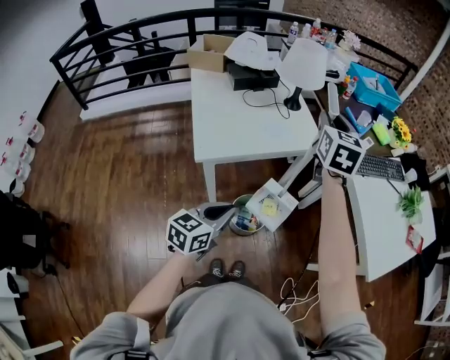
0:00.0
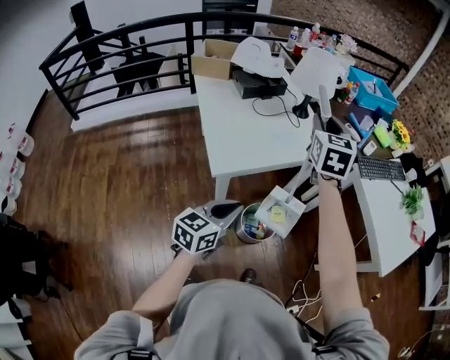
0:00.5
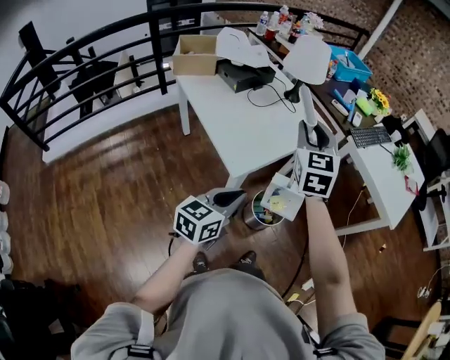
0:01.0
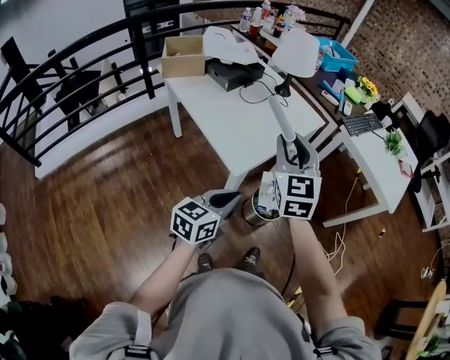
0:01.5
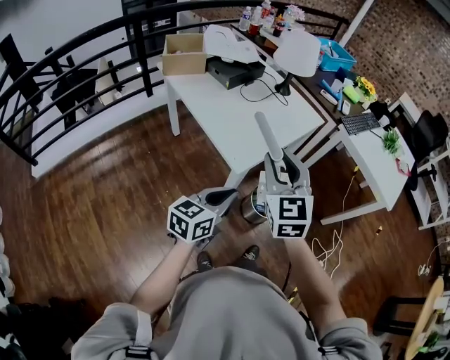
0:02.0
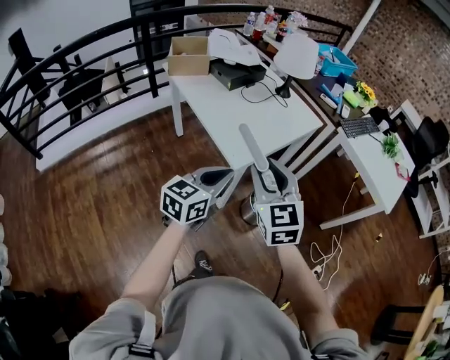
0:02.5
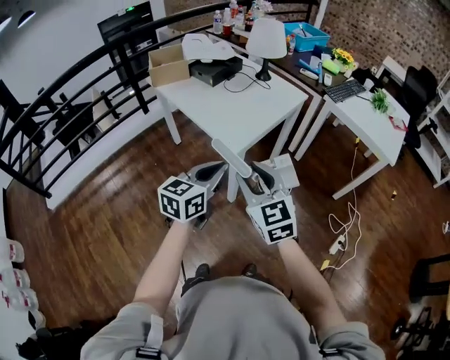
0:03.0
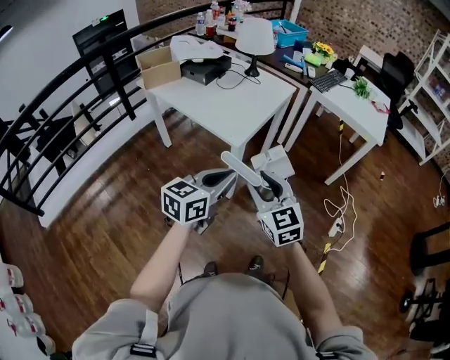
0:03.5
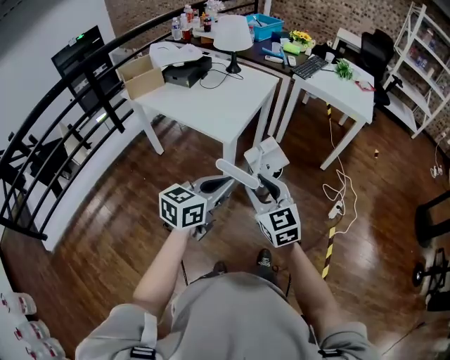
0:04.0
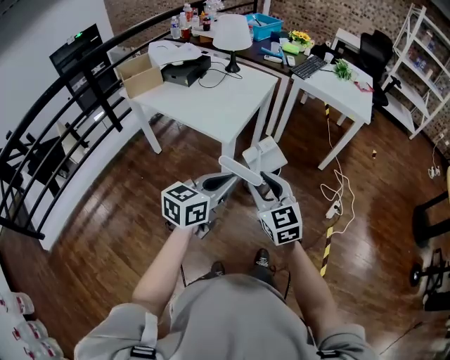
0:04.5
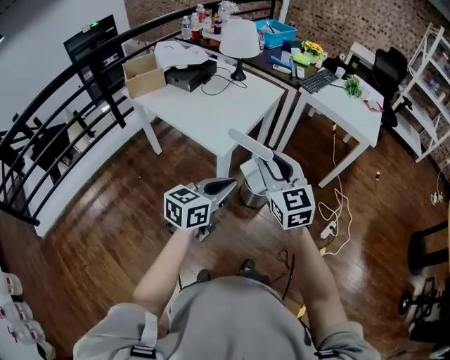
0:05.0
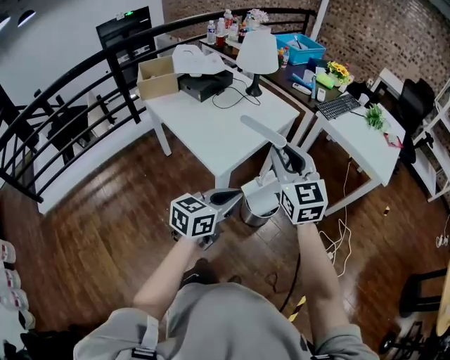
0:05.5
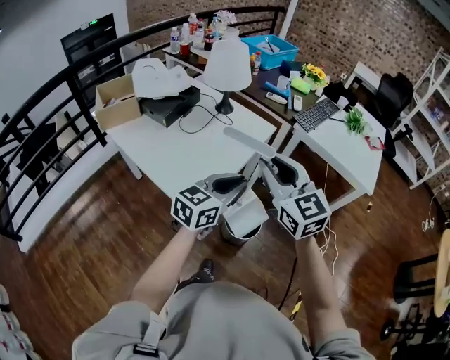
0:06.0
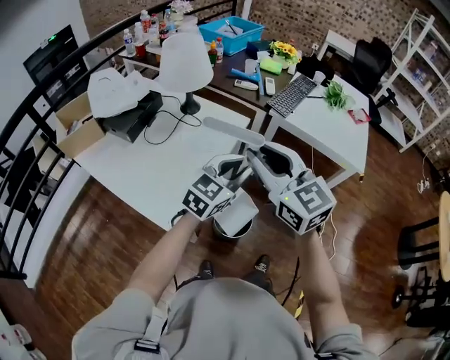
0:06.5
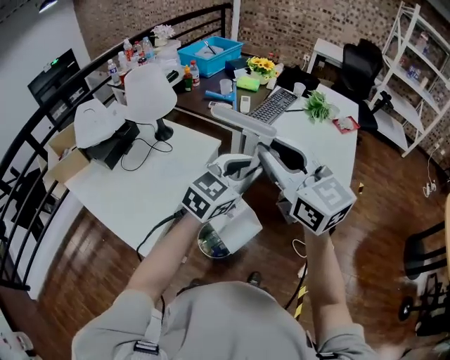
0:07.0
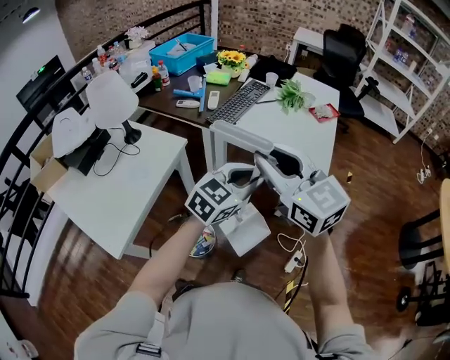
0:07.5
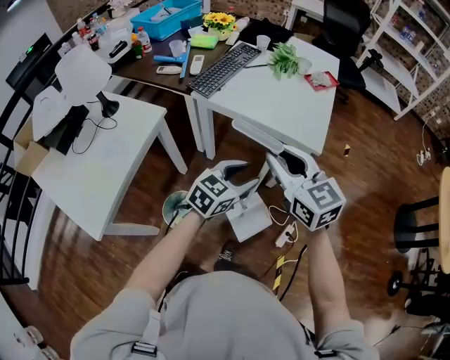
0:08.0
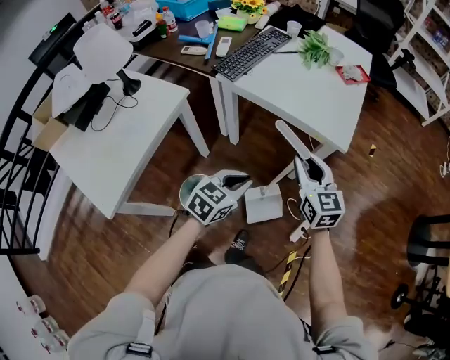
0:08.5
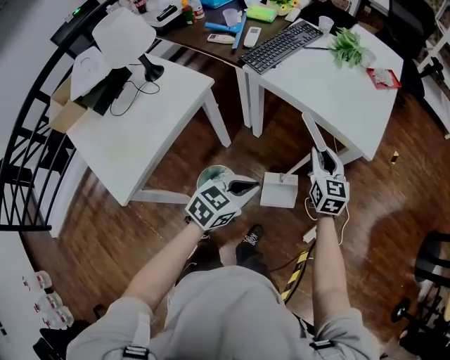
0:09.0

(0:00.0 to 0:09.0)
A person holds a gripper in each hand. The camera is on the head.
0:00.0 - 0:02.0: The left gripper heads to the left, covering about 25 cm, and rotates some 20 degrees; the right gripper heads backward and to the left, covering approximately 40 cm.
0:02.0 - 0:04.5: The left gripper moves backward, roughly 15 cm, and rotates approximately 20 degrees. The right gripper is displaced backward and downward by about 25 cm.
0:04.5 - 0:07.0: The pair of grippers is taken forward and to the right, about 60 cm. The right gripper heads upward, covering about 25 cm. Meanwhile the left gripper turns by roughly 30 degrees.
0:07.0 - 0:09.0: The right gripper heads downward, to the right and forward, covering roughly 50 cm, and changes its angle by roughly 30 degrees. Meanwhile the left gripper heads downward and to the right, covering approximately 25 cm, changes its angle by roughly 30 degrees, and opens, then closes once more.

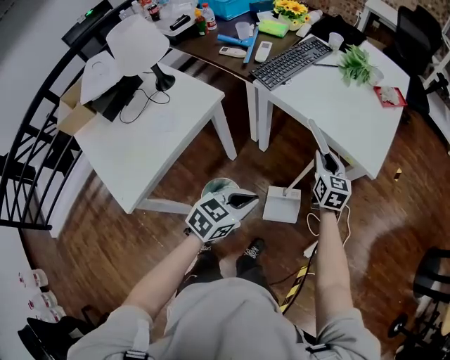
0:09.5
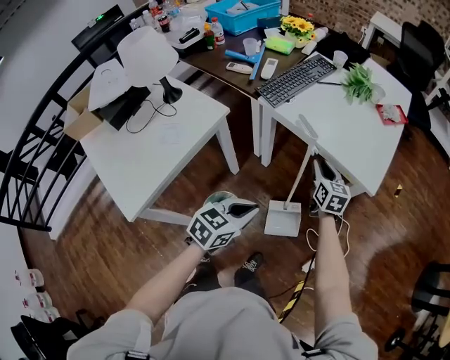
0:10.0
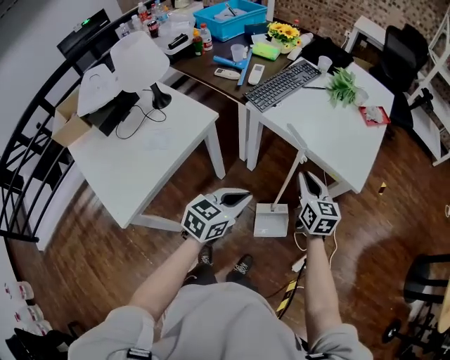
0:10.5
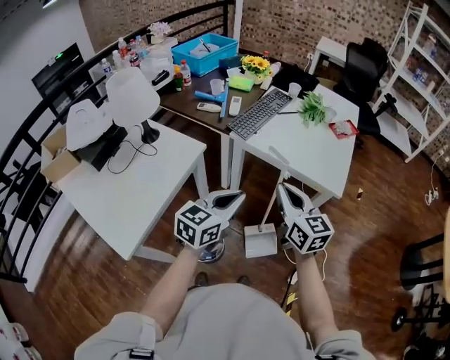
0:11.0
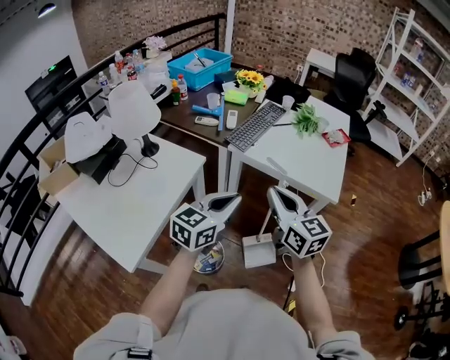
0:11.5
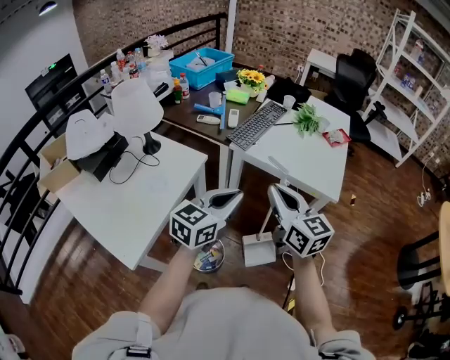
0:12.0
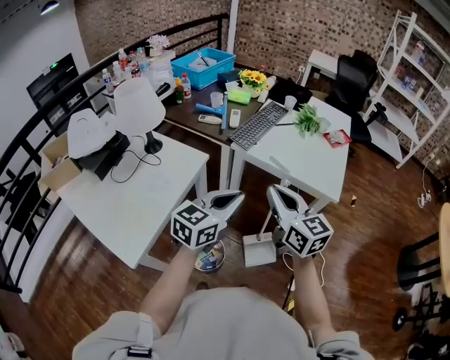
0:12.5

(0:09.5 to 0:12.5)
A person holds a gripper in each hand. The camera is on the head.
0:09.5 - 0:11.0: The left gripper shifts some 15 cm upward and to the left, and changes its angle by some 20 degrees, while the right gripper travels upward, backward and to the left by roughly 25 cm, and closes.
0:11.0 - 0:12.5: The left gripper ends up roughly 5 cm from where it was, while the right gripper shifts roughly 10 cm to the left and upward.

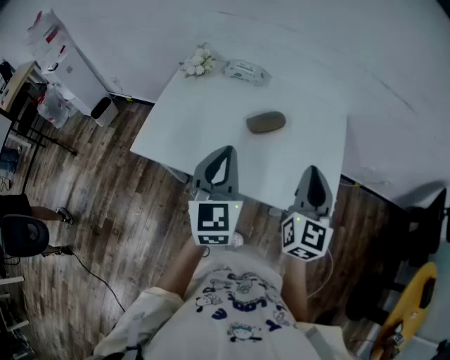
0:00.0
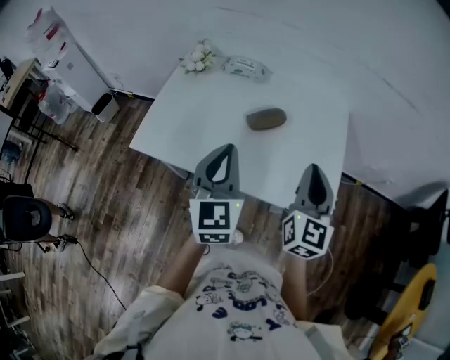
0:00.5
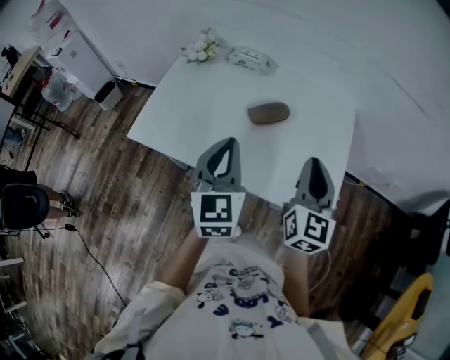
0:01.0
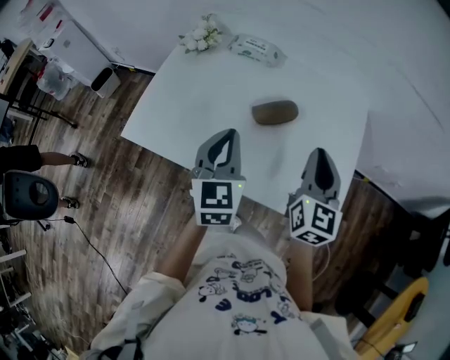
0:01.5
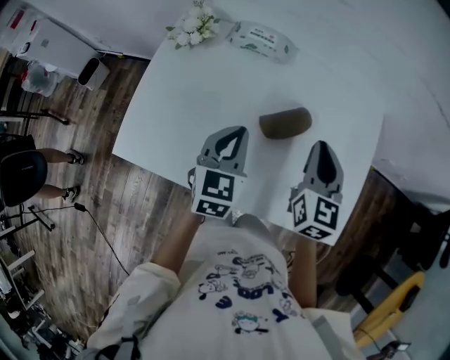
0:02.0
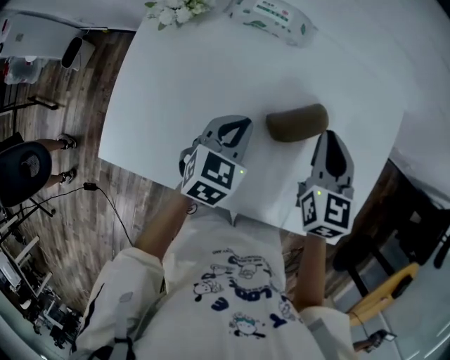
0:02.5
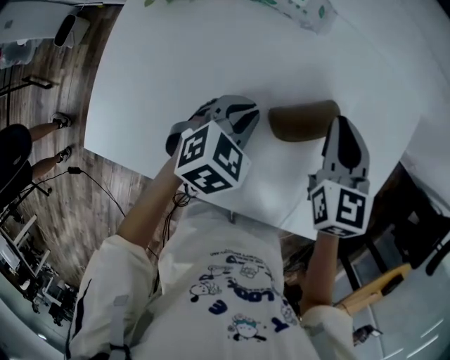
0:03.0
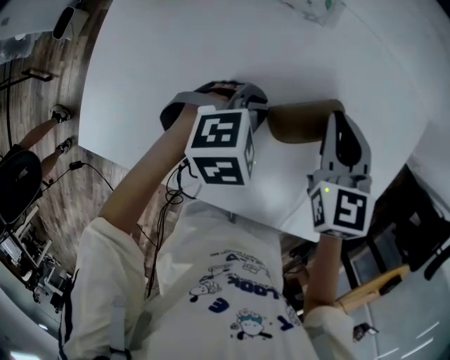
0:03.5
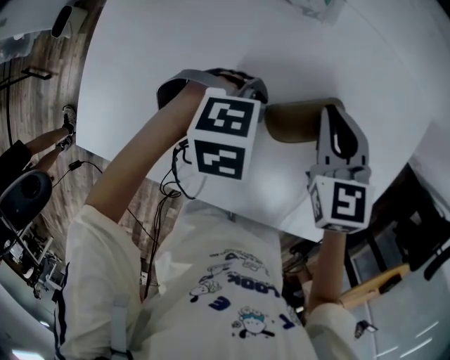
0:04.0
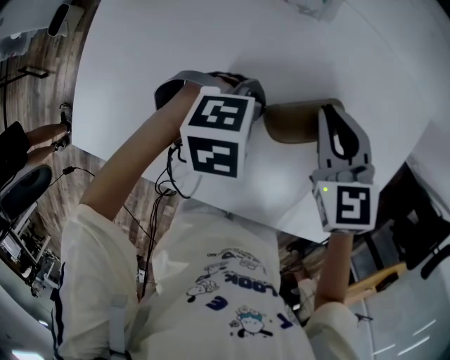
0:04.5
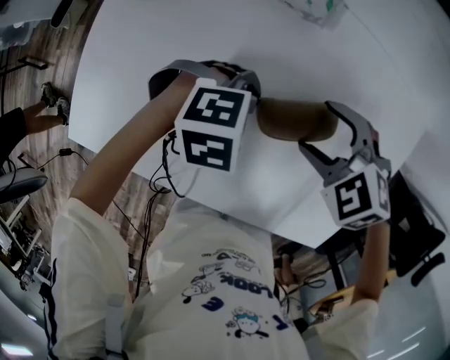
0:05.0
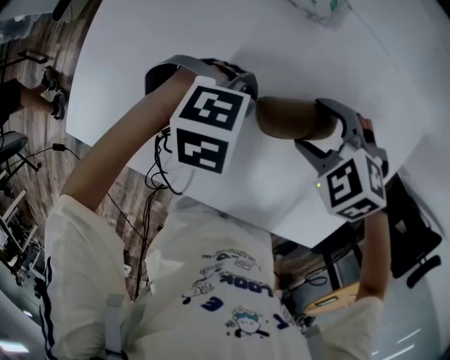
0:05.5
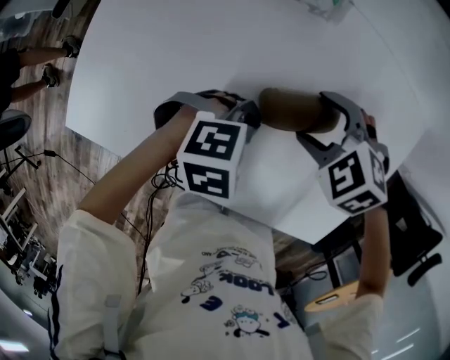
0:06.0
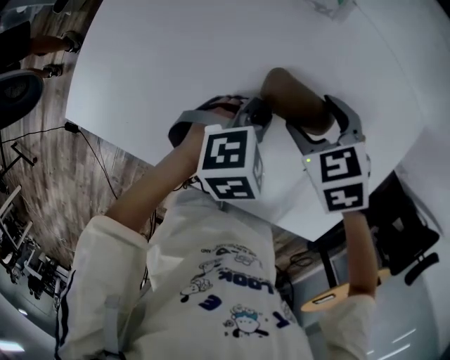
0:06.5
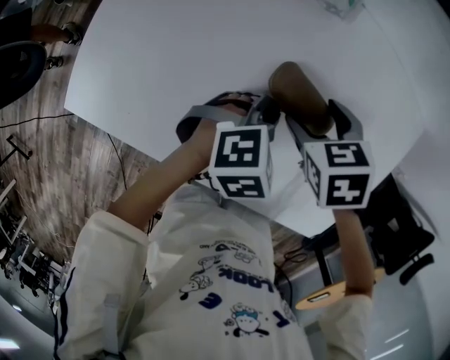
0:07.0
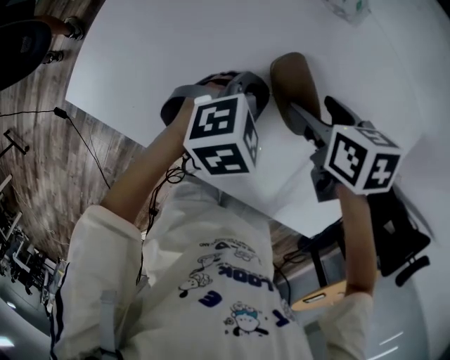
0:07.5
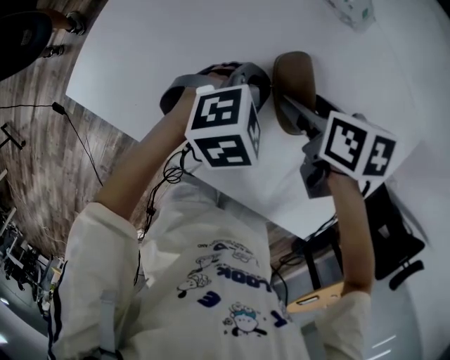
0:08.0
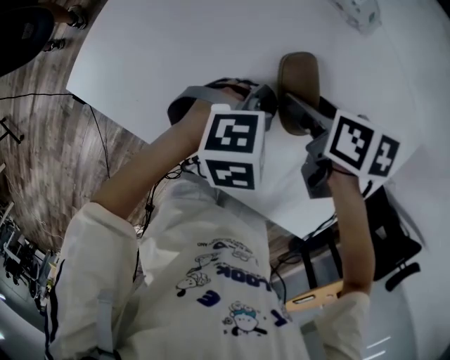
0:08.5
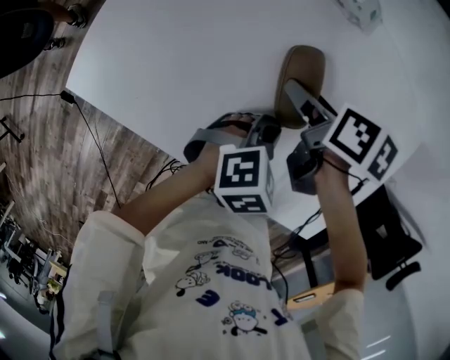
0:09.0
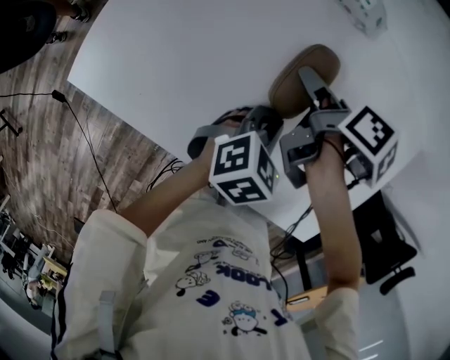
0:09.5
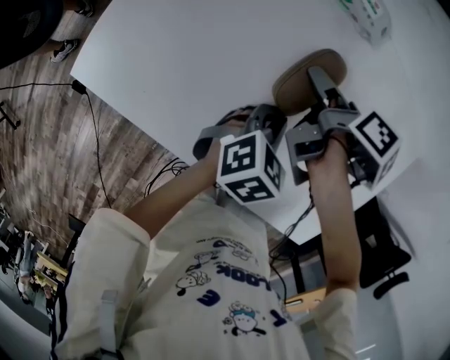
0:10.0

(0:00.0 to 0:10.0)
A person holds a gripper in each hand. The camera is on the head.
0:00.0 - 0:02.0: Both grippers travel together forward and downward, approximately 25 cm. The left gripper turns by approximately 20 degrees.
0:02.0 - 0:04.0: The left gripper heads downward and forward, covering approximately 15 cm, and tips its fingers downward by some 40 degrees. Meanwhile the right gripper travels downward, to the left and forward by about 15 cm, and rotates approximately 30 degrees.
0:04.0 - 0:06.0: The left gripper ends up about 5 cm from where it was. The right gripper goes about 5 cm downward, rotates approximately 60 degrees, and opens up.
0:06.0 - 0:08.0: The right gripper ends up some 5 cm from where it was, and rotates around the line of its fingers by roughly 60 degrees, clockwise from behind, while the left gripper changes place by about 5 cm, and rotates roughly 30 degrees.
0:08.0 - 0:10.0: The right gripper rotates around the line of its fingers by about 50 degrees, clockwise from behind; the left gripper changes place by some 5 cm, and changes its angle by approximately 20 degrees.

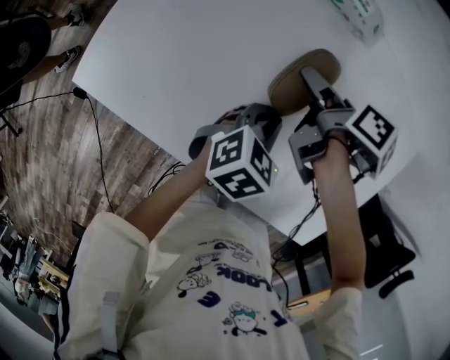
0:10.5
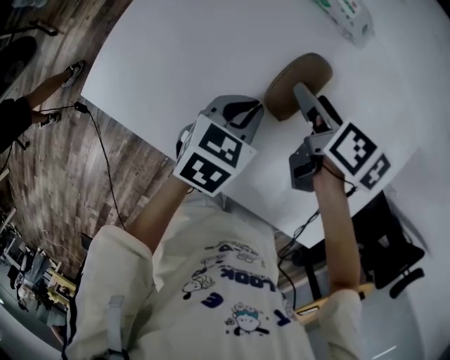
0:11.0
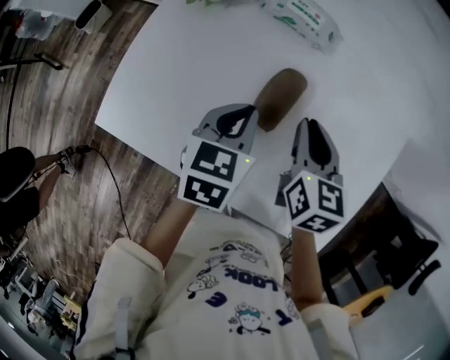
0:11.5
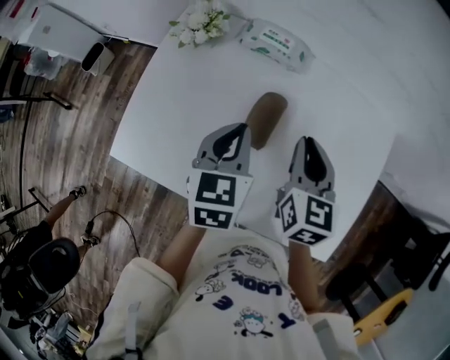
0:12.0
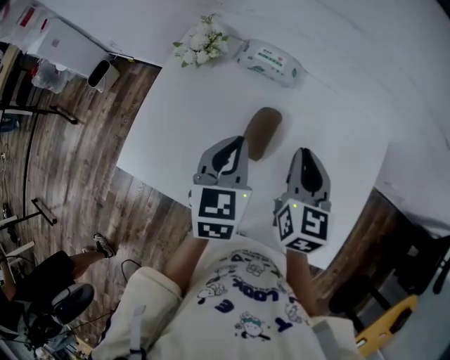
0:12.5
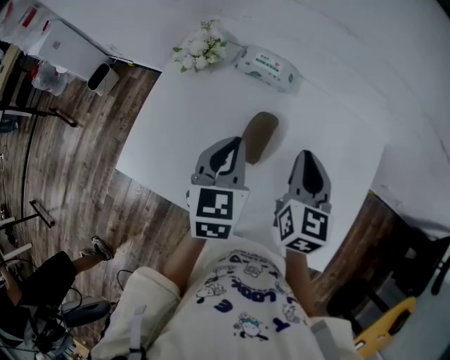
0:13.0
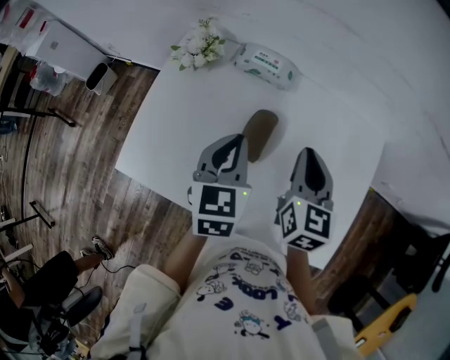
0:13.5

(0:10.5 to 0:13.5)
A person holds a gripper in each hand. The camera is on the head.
0:10.5 - 0:12.0: The left gripper shifts some 20 cm upward and to the left, and rotates some 30 degrees. Meanwhile the right gripper moves upward and to the right, some 15 cm, turns by roughly 70 degrees, and closes its fingers.
0:12.0 - 0:13.5: The grippers make only small movements.
